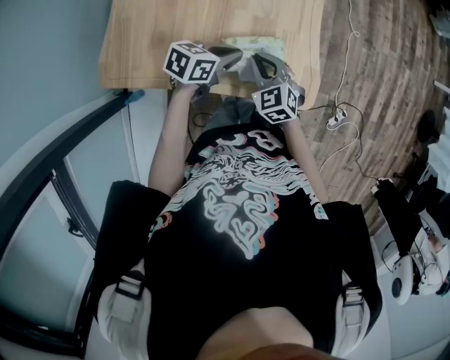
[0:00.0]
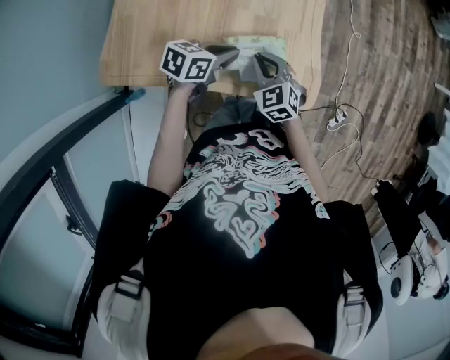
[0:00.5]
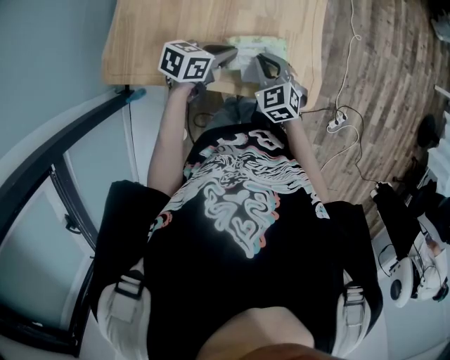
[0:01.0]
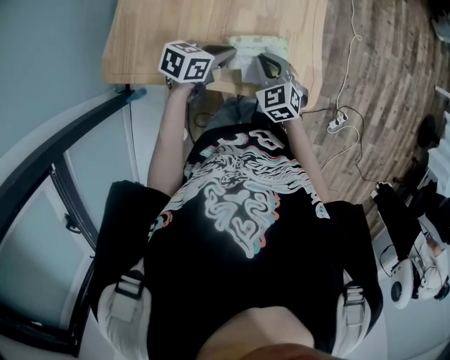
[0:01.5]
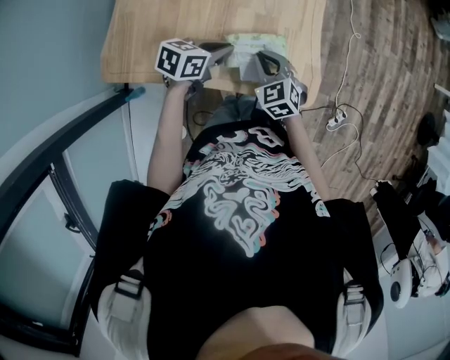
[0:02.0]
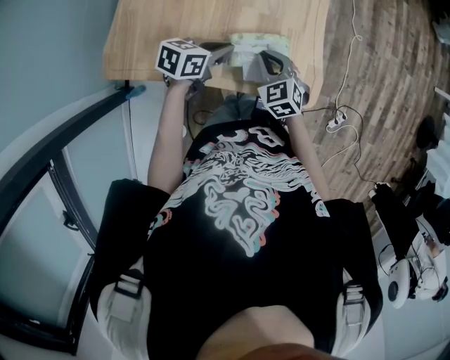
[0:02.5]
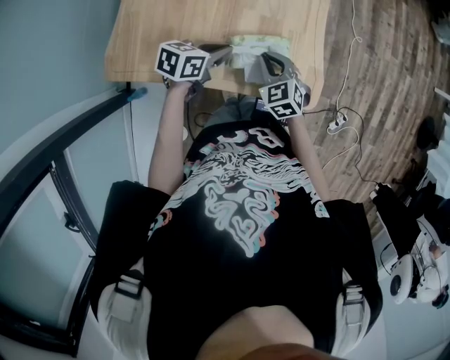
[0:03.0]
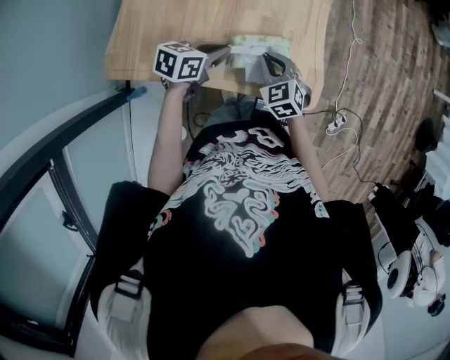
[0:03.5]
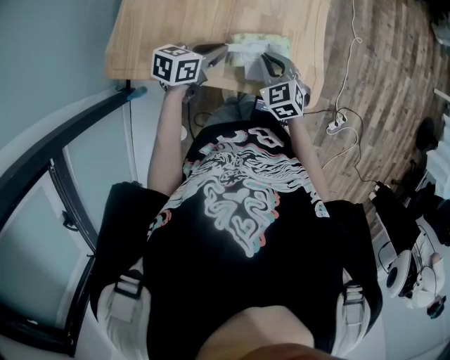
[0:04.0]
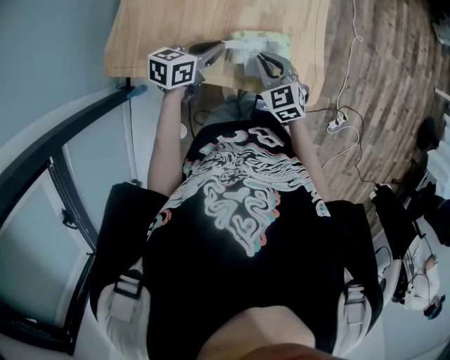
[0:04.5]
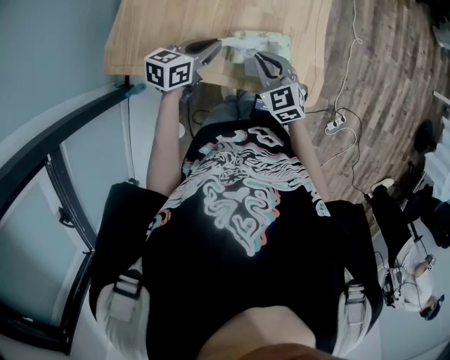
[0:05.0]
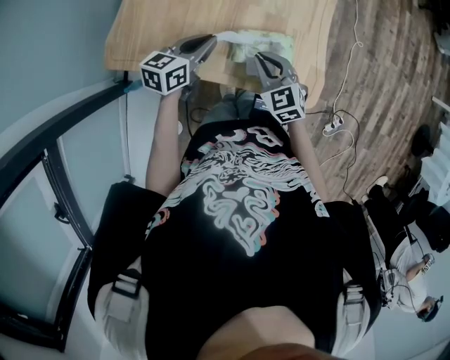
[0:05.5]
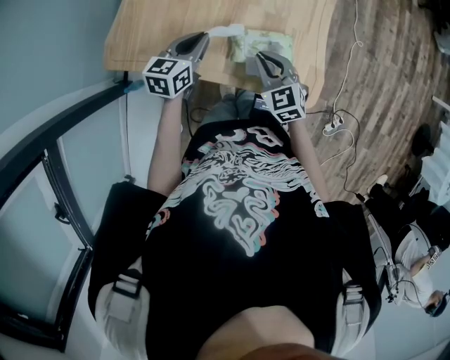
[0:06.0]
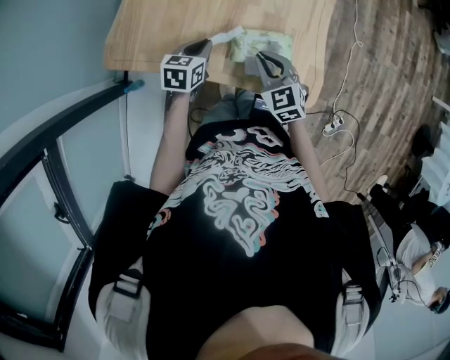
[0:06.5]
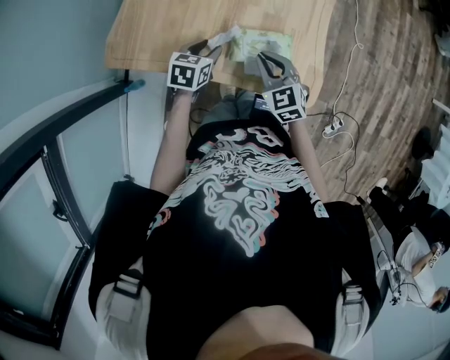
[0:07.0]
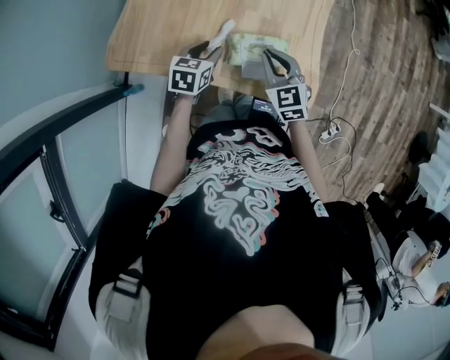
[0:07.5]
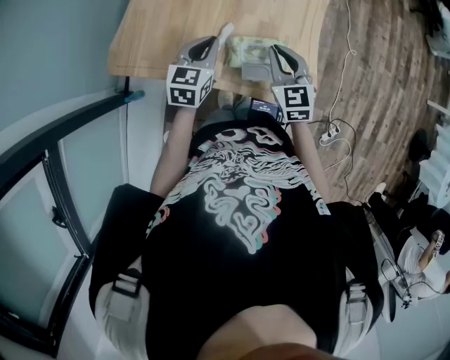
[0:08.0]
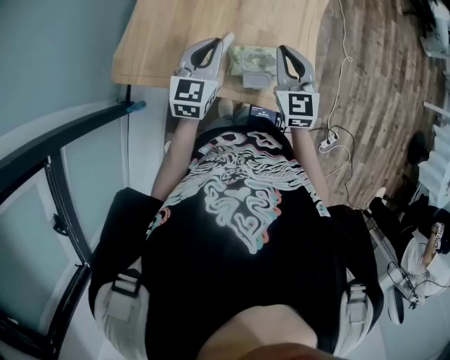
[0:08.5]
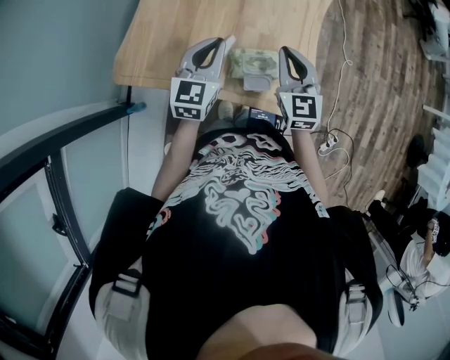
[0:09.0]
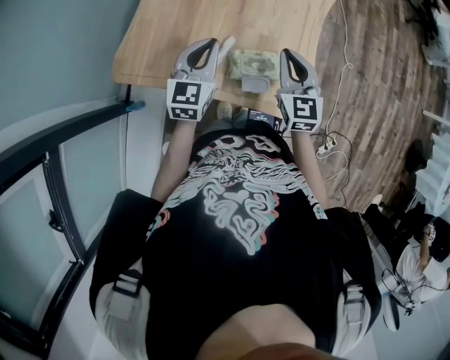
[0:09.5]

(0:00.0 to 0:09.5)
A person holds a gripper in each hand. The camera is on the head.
0:00.0 - 0:02.0: The grippers make only small movements.
0:02.0 - 0:04.0: The grippers stay close to where they were, moving slightly.
0:04.0 - 0:05.5: The grippers move only a little.
0:05.5 - 0:07.5: The left gripper travels downward by about 5 cm, rotates some 20 degrees, and opens its fingers.
0:07.5 - 0:09.5: The right gripper heads upward, covering about 10 cm, and swivels some 20 degrees. Meanwhile the left gripper is displaced upward by approximately 15 cm, rotates approximately 30 degrees, and closes up.

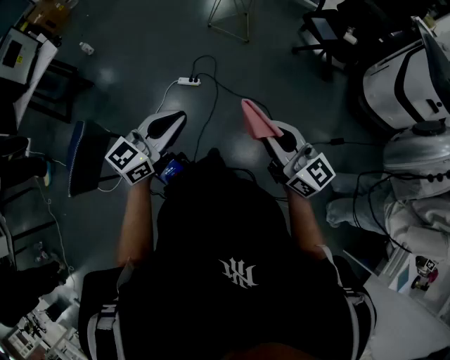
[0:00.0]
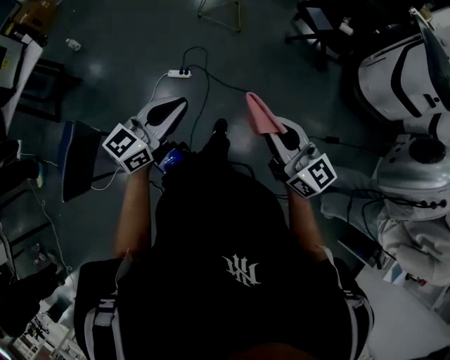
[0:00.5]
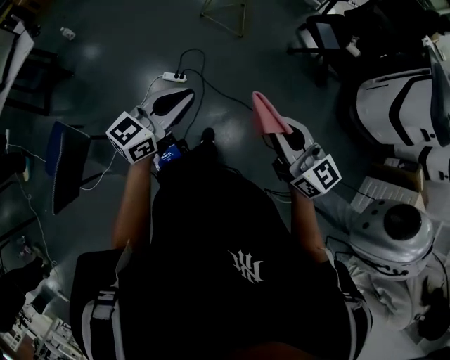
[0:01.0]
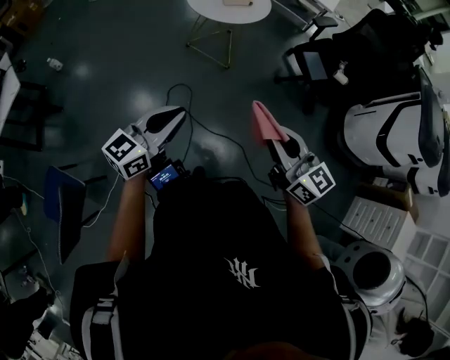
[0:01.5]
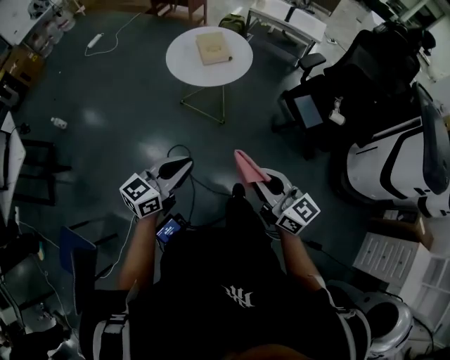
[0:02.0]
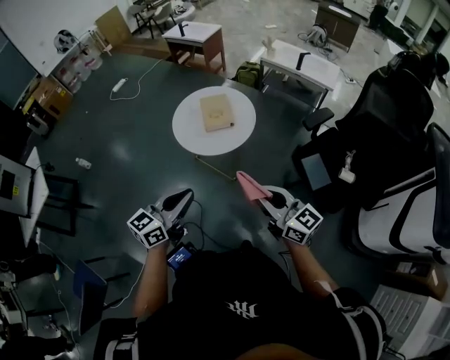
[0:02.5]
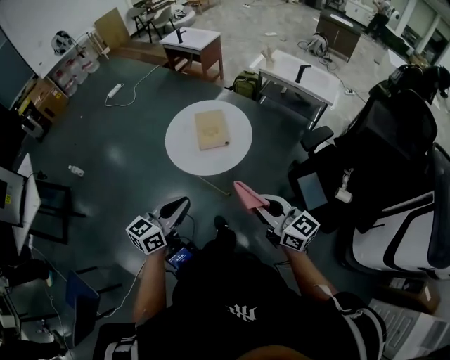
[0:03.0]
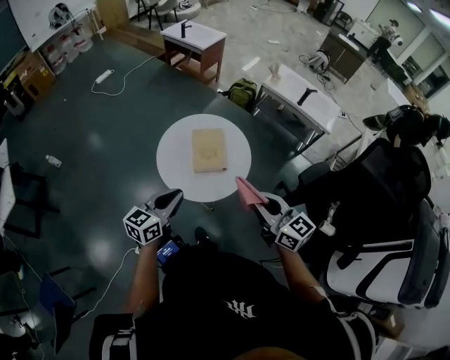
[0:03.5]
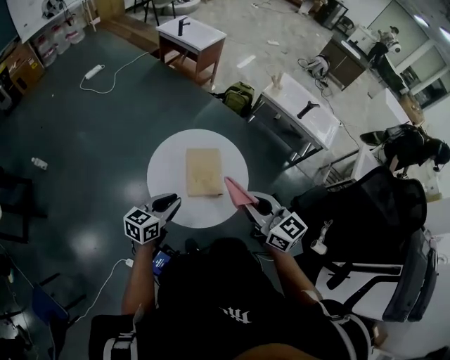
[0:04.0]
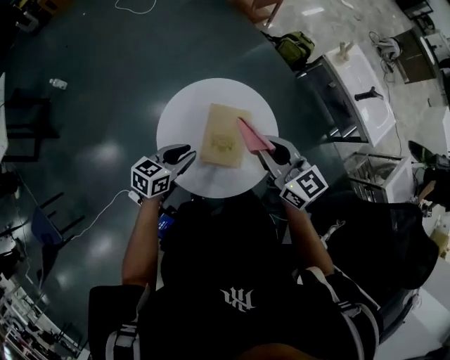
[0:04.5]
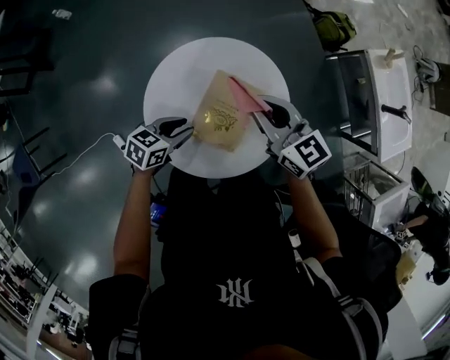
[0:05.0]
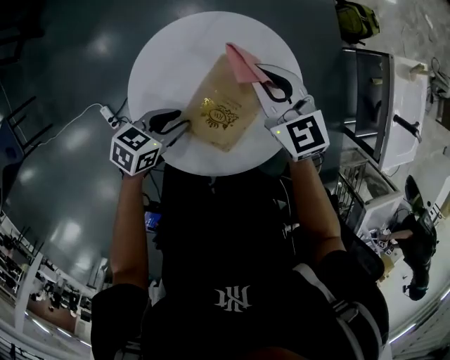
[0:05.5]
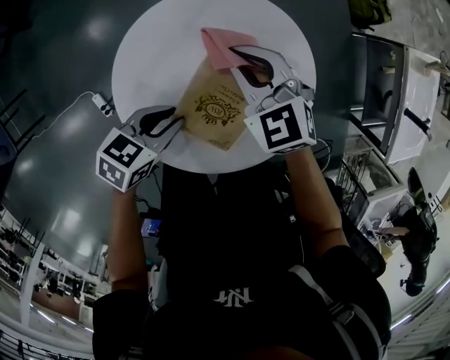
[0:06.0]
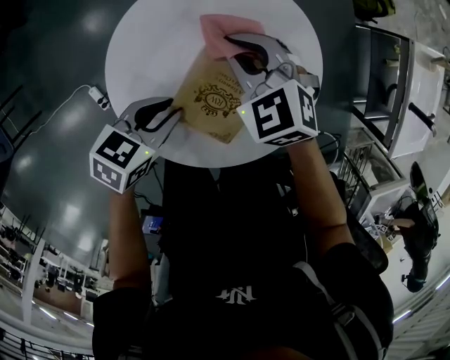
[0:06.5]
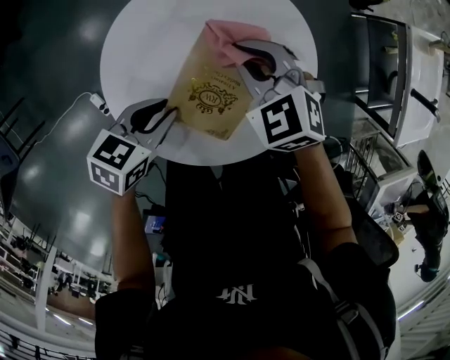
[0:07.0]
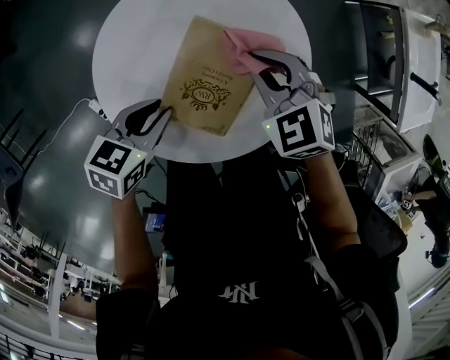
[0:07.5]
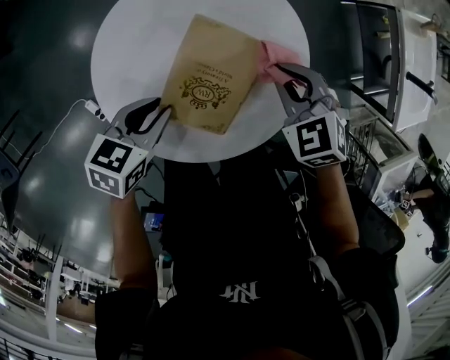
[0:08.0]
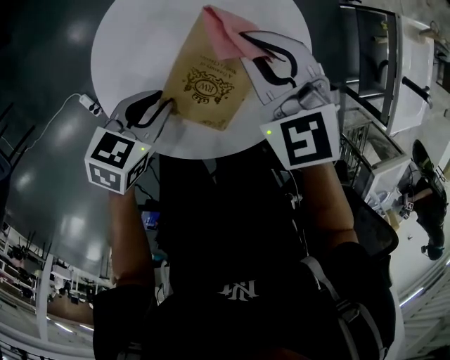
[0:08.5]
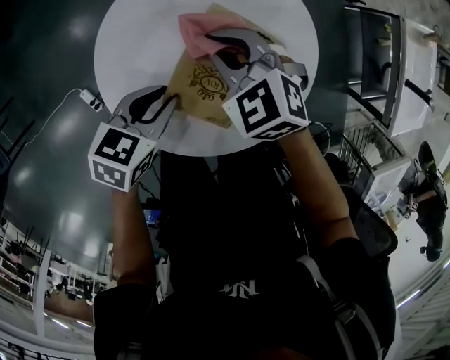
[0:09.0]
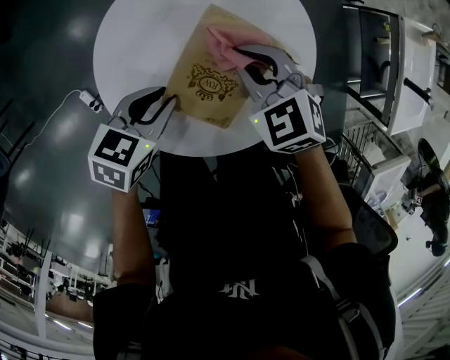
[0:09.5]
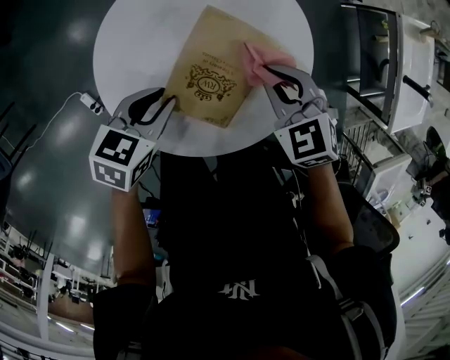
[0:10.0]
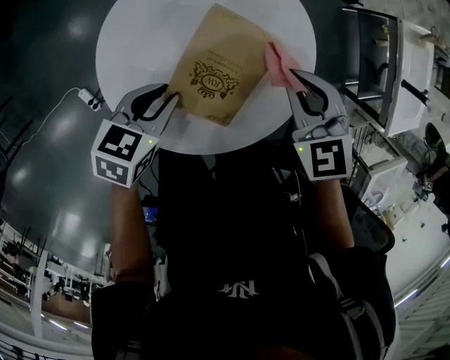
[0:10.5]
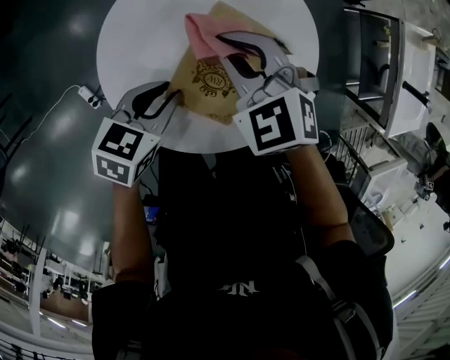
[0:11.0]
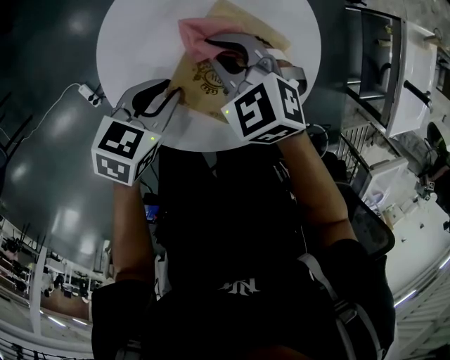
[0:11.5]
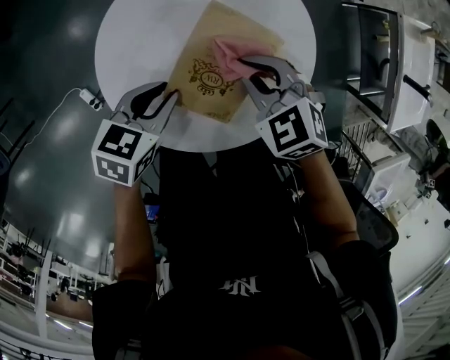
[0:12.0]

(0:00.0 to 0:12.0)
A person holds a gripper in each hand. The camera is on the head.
0:00.0 - 0:02.0: The two grippers travel together, forward, roughly 60 cm.
0:02.0 - 0:04.0: Both grippers are carried forward, approximately 60 cm. The left gripper changes its angle by approximately 20 degrees.
0:04.0 - 0:06.0: The left gripper goes about 30 cm downward, and swivels roughly 40 degrees, while the right gripper is displaced downward and forward by roughly 50 cm, and changes its angle by approximately 50 degrees.
0:06.0 - 0:08.0: The right gripper moves to the right, about 15 cm, and swivels approximately 20 degrees.
0:08.0 - 0:10.0: The right gripper moves about 15 cm to the left and comes back.
0:10.0 - 0:12.0: The right gripper travels to the left by roughly 5 cm.

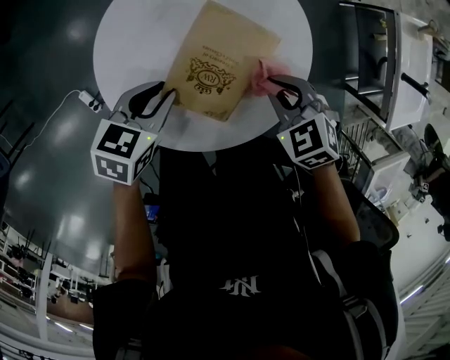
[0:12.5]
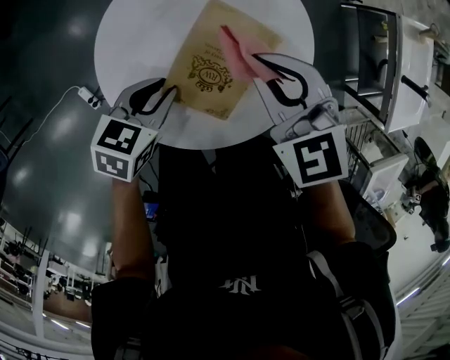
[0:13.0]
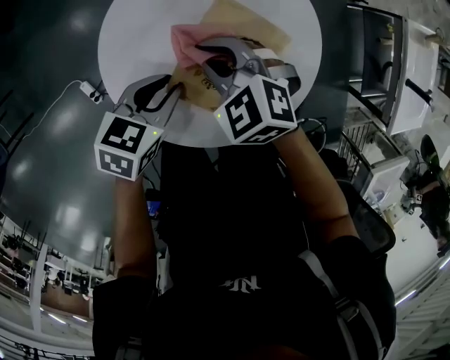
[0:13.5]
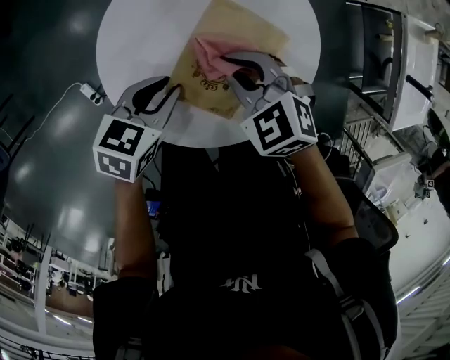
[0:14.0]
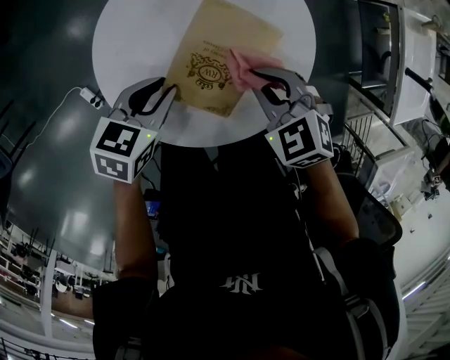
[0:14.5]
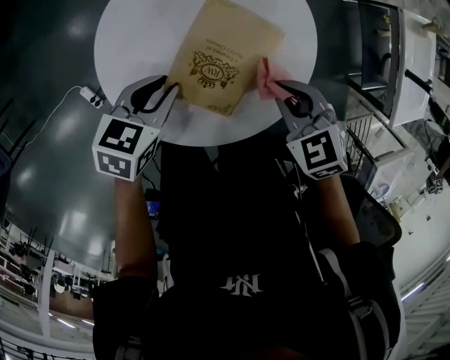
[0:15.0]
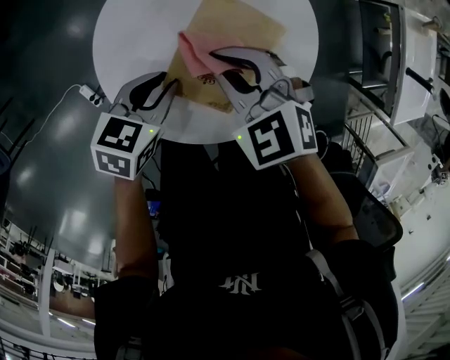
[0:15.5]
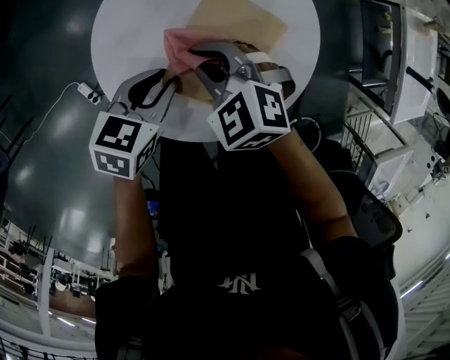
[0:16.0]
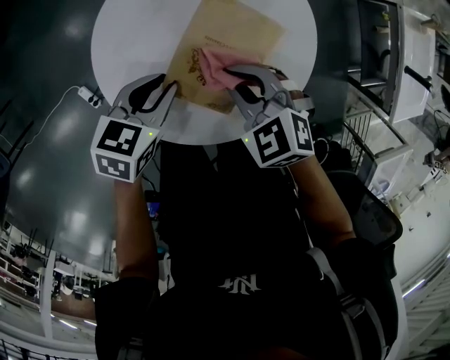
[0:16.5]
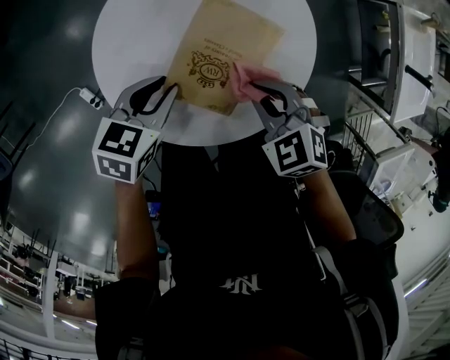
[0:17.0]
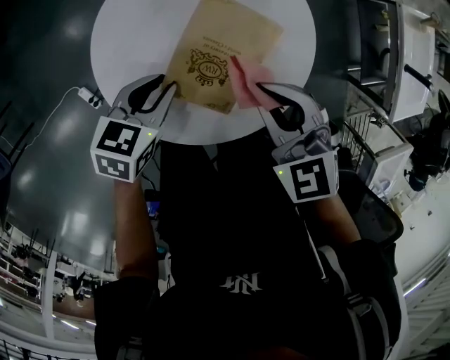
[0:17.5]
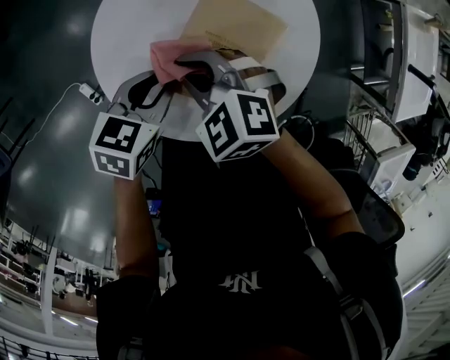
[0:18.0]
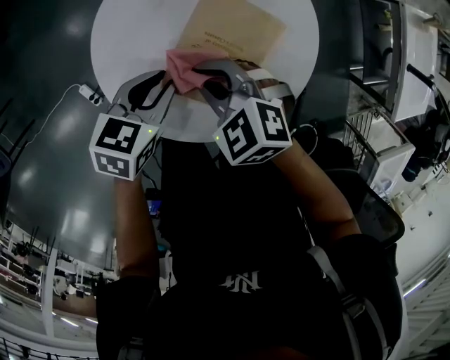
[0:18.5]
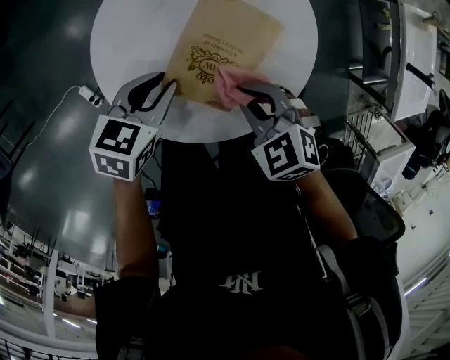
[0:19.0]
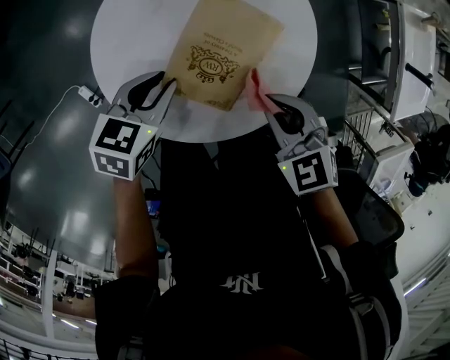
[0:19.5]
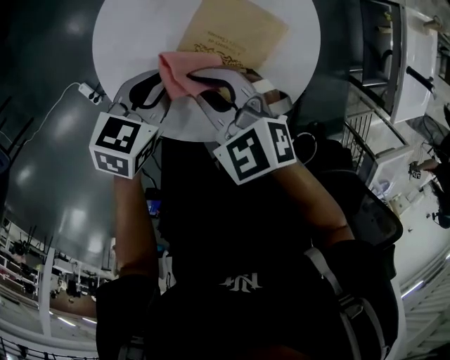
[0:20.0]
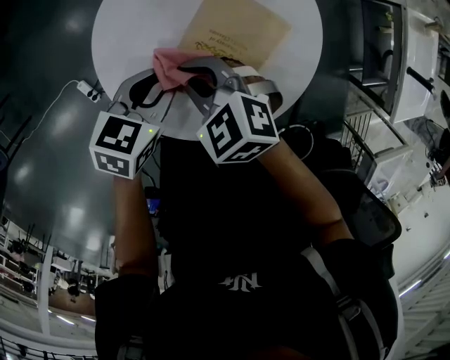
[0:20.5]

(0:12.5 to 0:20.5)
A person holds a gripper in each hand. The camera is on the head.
0:12.5 - 0:14.5: The right gripper reaches about 15 cm to the left, then returns.
0:14.5 - 0:16.5: The right gripper swings left and right, some 15 cm each way, with 2 reversals.
0:16.5 - 0:18.5: The right gripper moves to the left, approximately 5 cm.
0:18.5 - 0:20.5: The right gripper travels to the right and back again, approximately 15 cm each way.
